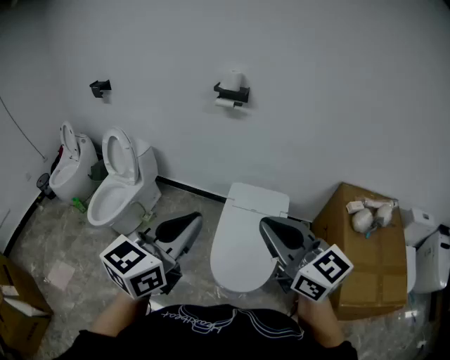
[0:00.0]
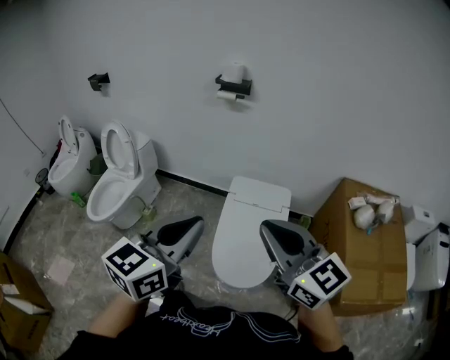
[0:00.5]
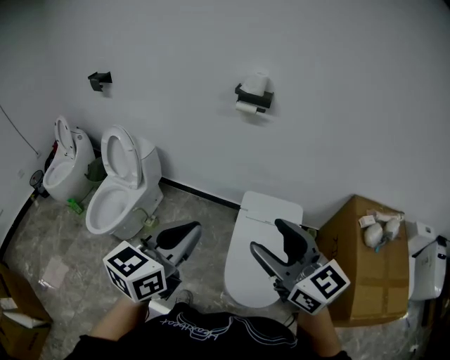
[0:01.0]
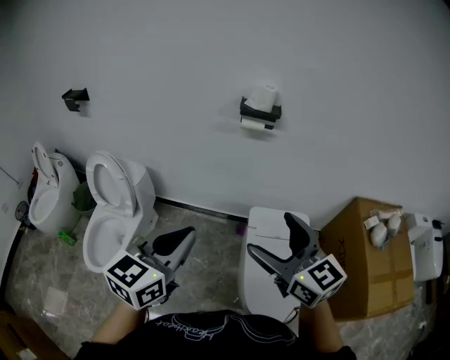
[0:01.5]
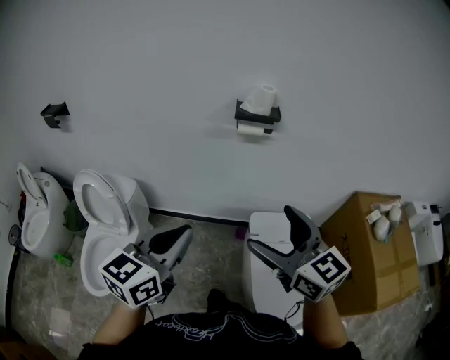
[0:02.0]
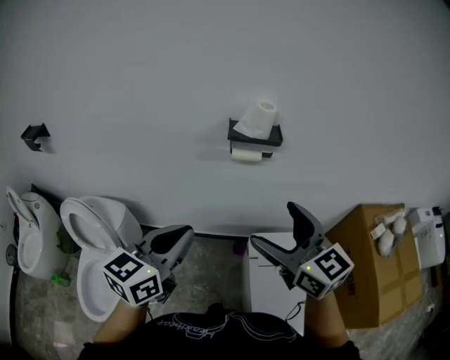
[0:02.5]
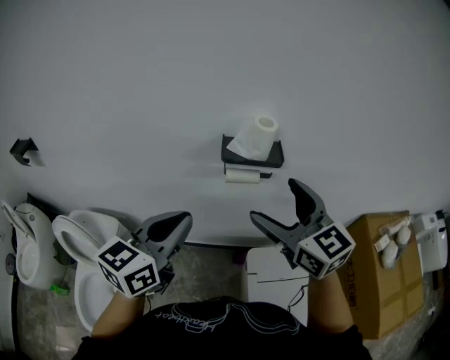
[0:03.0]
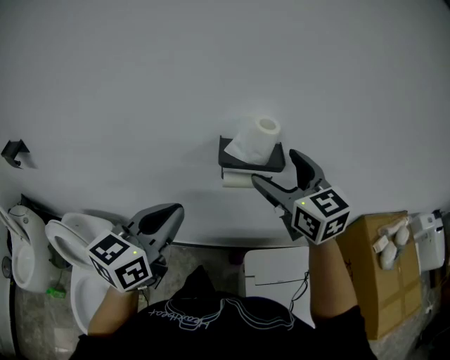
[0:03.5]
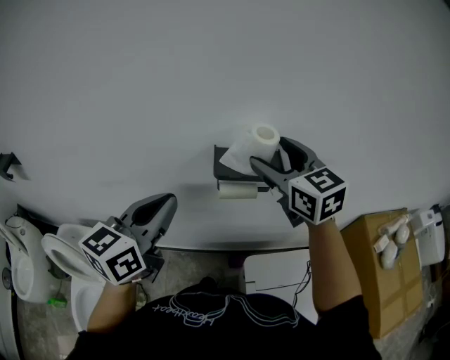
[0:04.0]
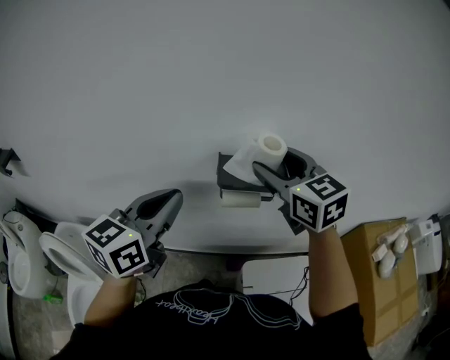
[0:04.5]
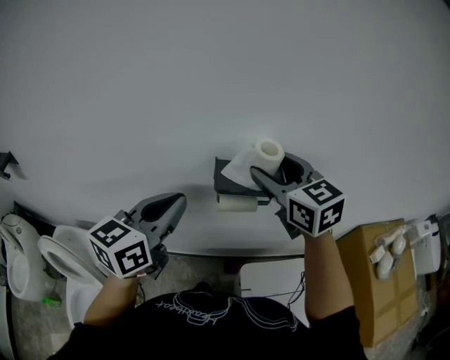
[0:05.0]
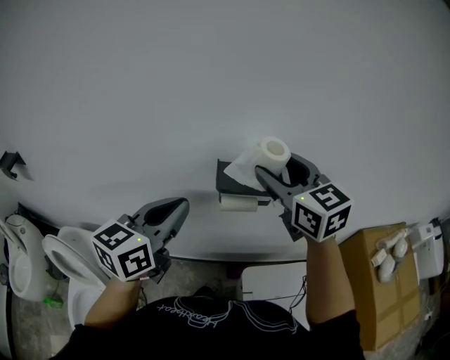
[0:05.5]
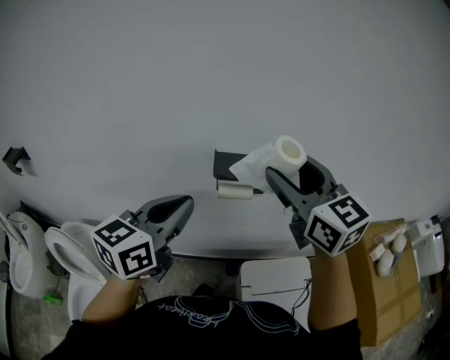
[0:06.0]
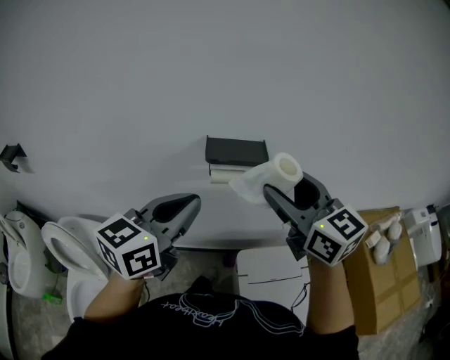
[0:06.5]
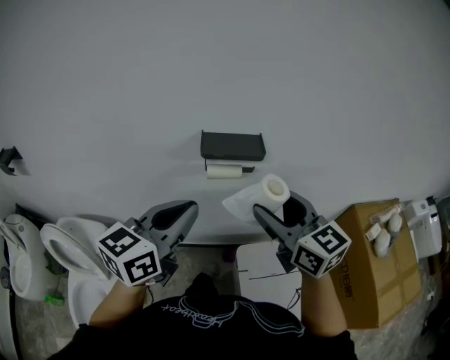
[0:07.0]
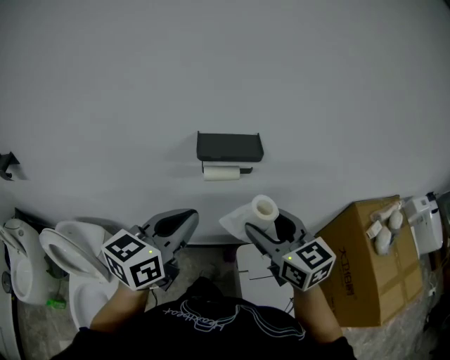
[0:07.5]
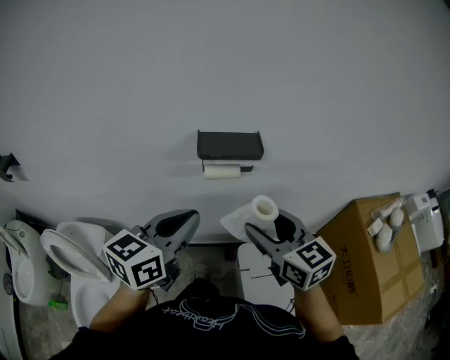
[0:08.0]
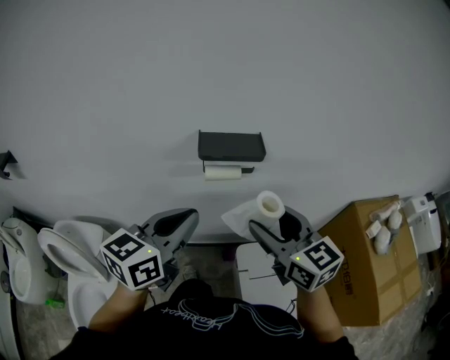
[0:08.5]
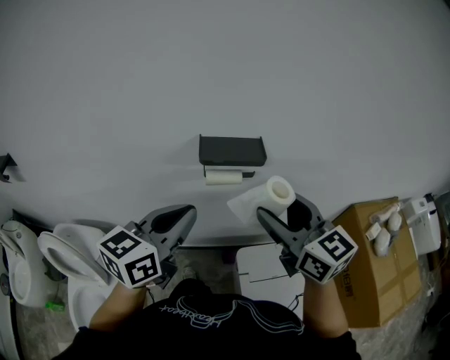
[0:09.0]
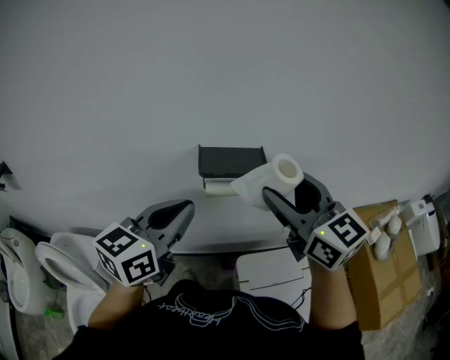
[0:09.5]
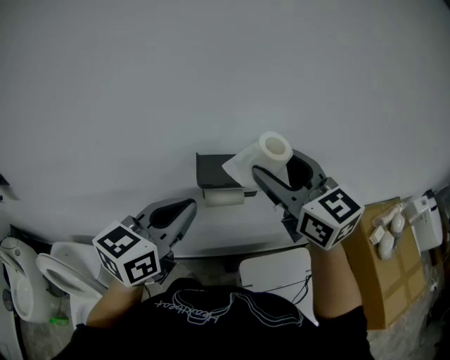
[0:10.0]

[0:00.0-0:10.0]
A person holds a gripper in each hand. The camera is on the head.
0:00.0 to 0:02.0: The grippers both shift forward and to the left by roughly 40 cm. The right gripper opens.
0:02.0 to 0:04.0: The two grippers go about 40 cm forward.
0:04.0 to 0:06.0: The left gripper ends up approximately 5 cm from where it was. Meanwhile the right gripper is displaced backward and upward by some 10 cm.
0:06.0 to 0:08.0: The left gripper is displaced downward by some 5 cm. Meanwhile the right gripper heads downward and backward, covering some 20 cm.
0:08.0 to 0:10.0: The right gripper moves upward and forward, approximately 20 cm. The left gripper shifts about 10 cm forward.

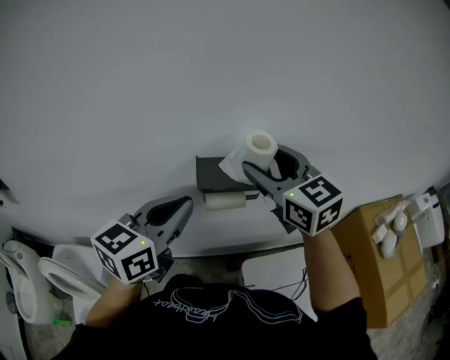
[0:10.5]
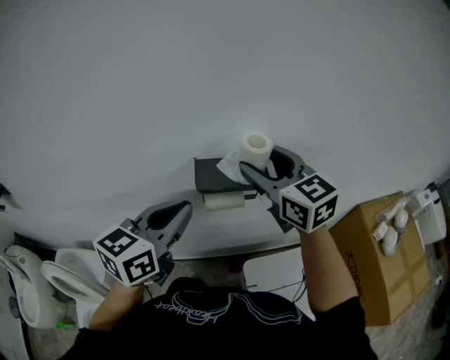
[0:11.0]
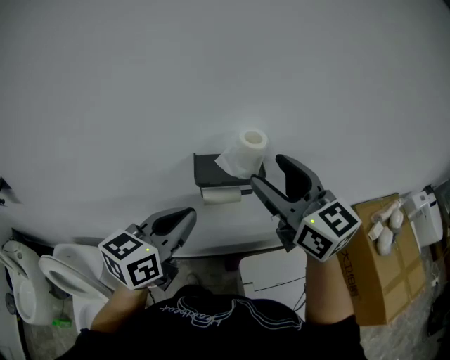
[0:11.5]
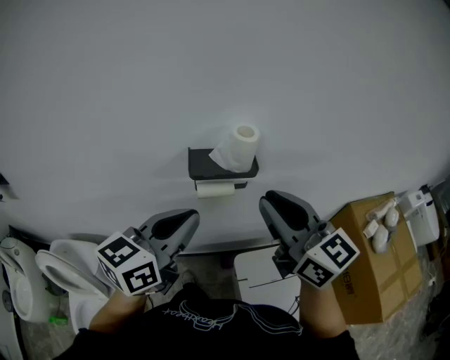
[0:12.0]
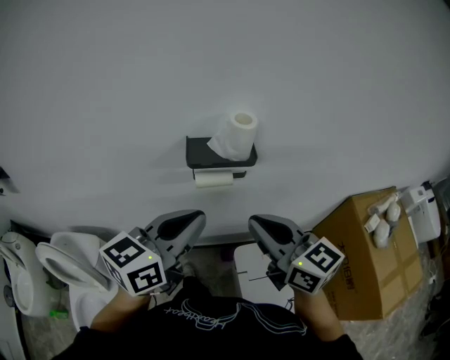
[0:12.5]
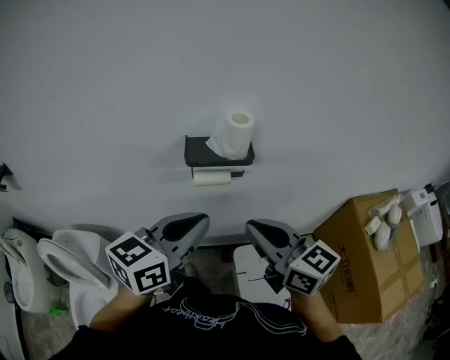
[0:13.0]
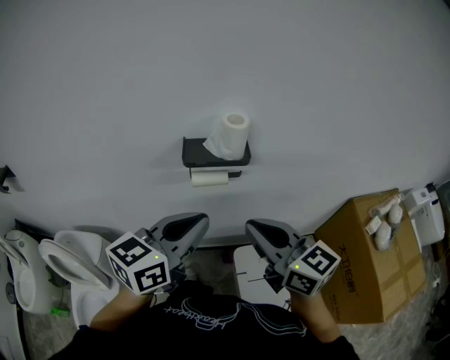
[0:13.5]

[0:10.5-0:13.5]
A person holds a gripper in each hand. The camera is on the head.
0:10.5 to 0:12.0: The left gripper moves backward, approximately 5 cm. Meanwhile the right gripper travels backward by some 15 cm, and closes up.
0:12.0 to 0:13.5: The right gripper moves downward and backward, about 10 cm, while the left gripper changes place by approximately 5 cm.

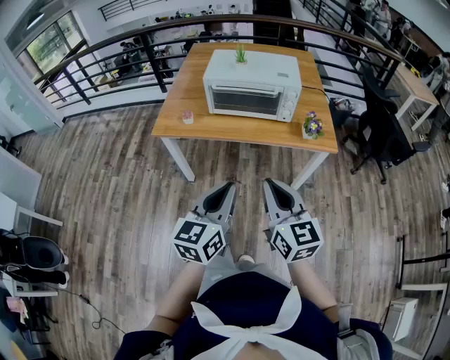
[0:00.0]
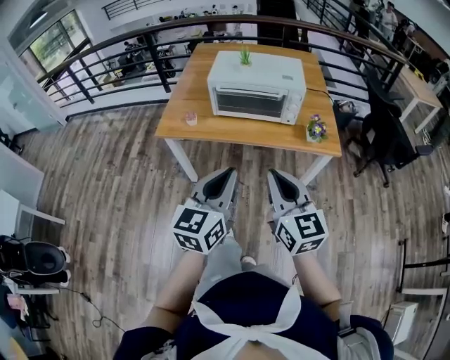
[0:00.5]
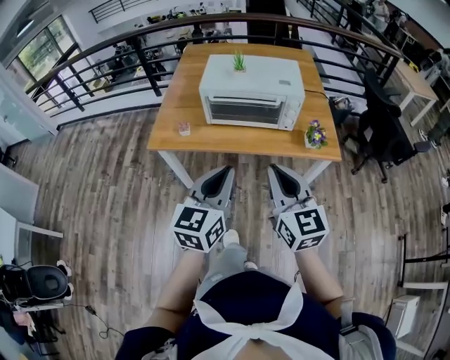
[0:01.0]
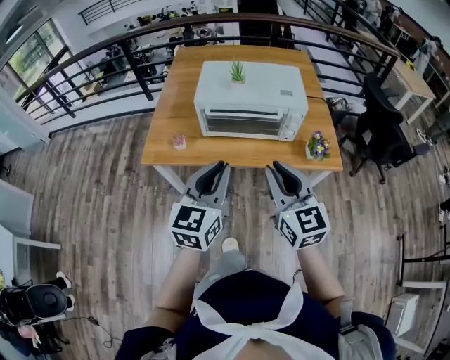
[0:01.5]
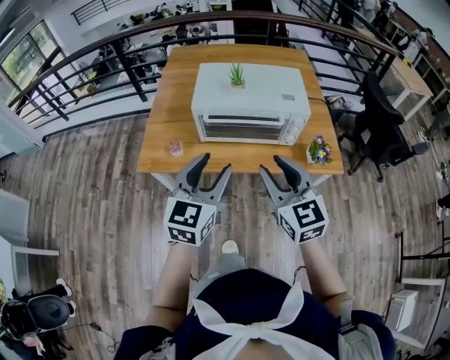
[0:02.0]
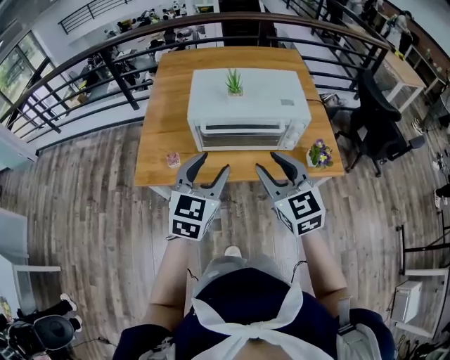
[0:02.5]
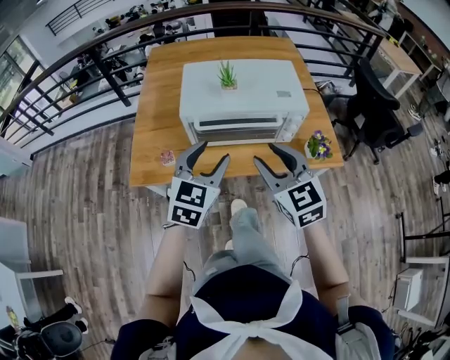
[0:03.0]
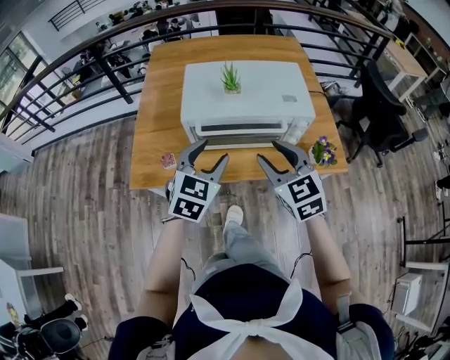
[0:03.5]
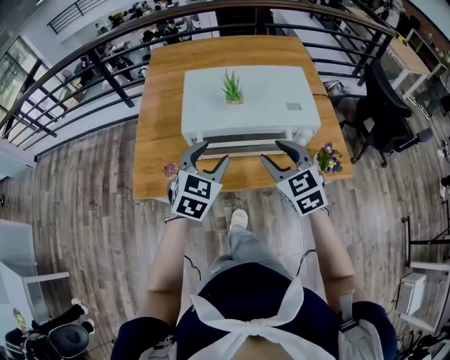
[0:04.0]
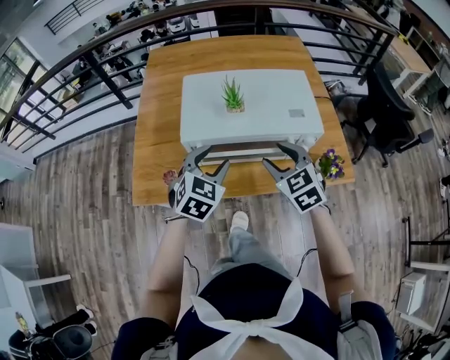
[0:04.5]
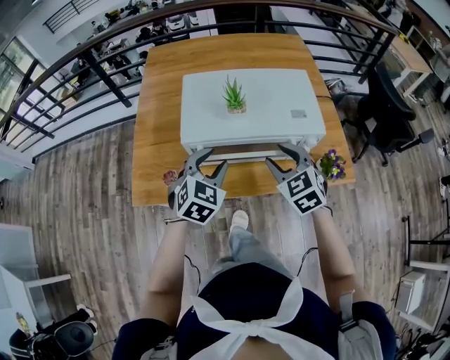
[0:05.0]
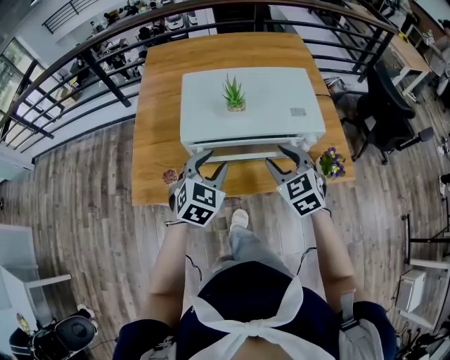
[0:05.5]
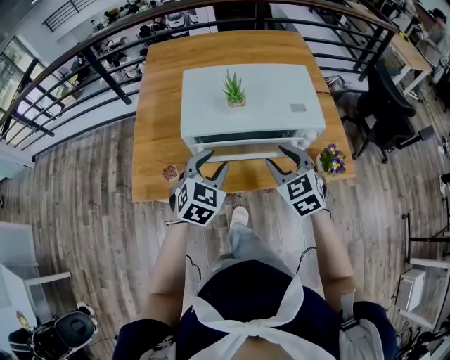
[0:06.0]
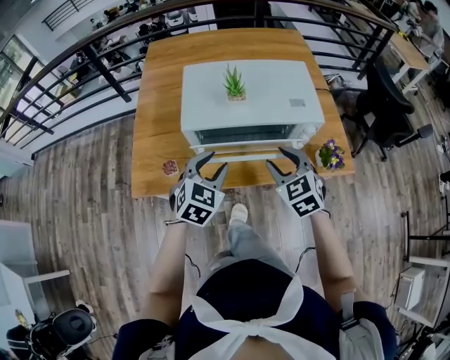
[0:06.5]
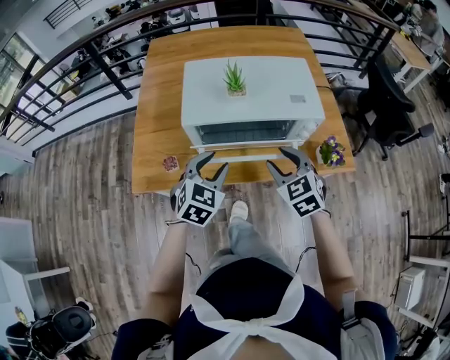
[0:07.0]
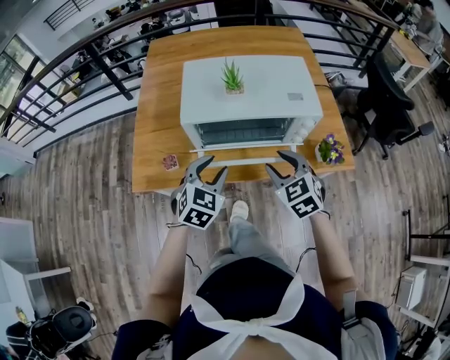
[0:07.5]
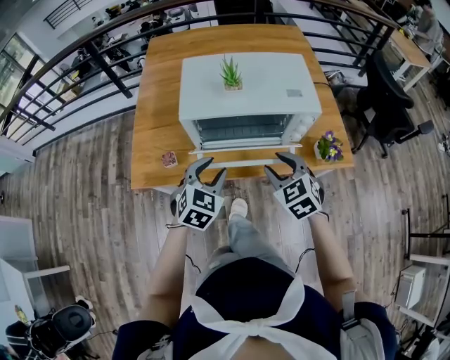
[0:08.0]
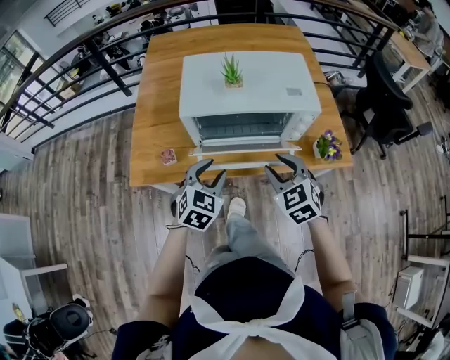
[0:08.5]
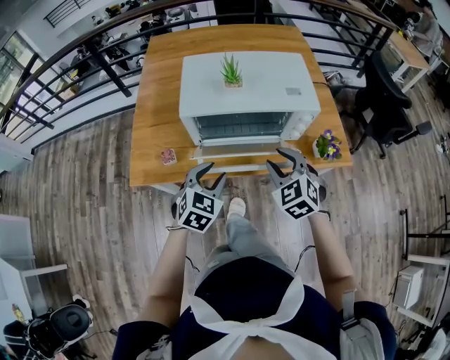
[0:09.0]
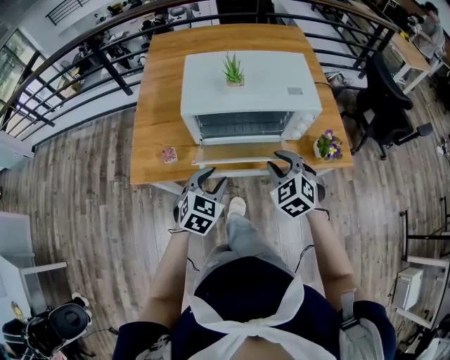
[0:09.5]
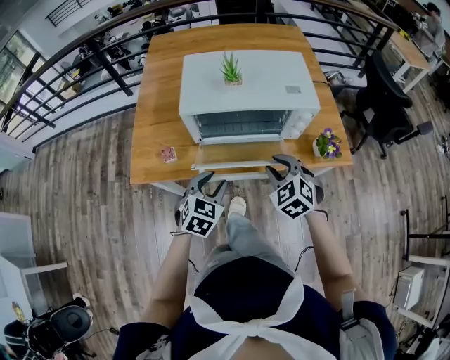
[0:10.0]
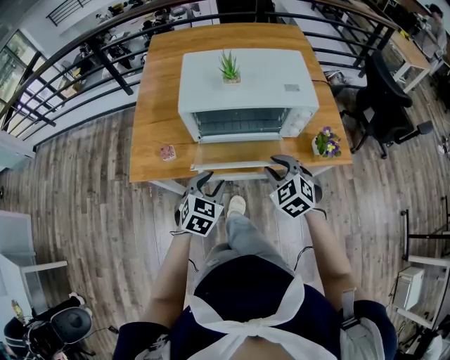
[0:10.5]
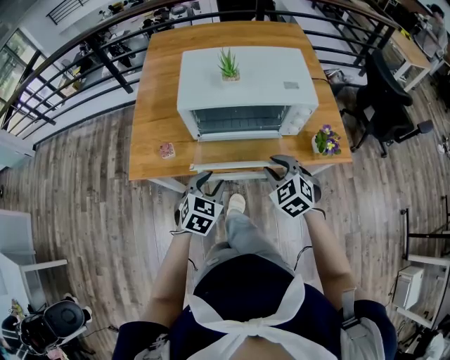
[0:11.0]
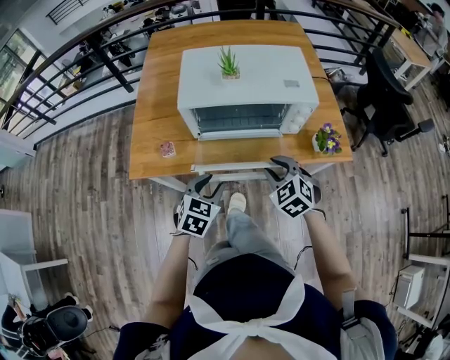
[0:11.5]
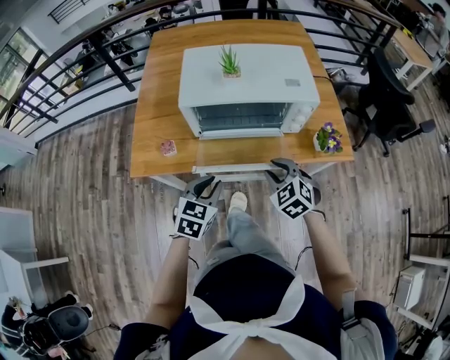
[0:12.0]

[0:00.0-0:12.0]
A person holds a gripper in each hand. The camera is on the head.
0:00.0 to 0:02.0: Both grippers travel together forward, about 25 cm. The right gripper opens; the left gripper opens its fingers.
0:02.0 to 0:04.0: Both grippers travel together forward and downward, approximately 20 cm. The left gripper changes its angle by about 20 degrees.
0:04.0 to 0:06.0: There are only small adjustments of the grippers.
0:06.0 to 0:08.0: Both grippers move backward, about 5 cm.
0:08.0 to 0:10.0: The left gripper ends up about 5 cm from where it was.
0:10.0 to 0:12.0: There are only small adjustments of the grippers.

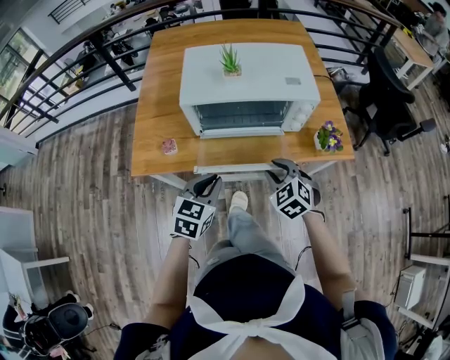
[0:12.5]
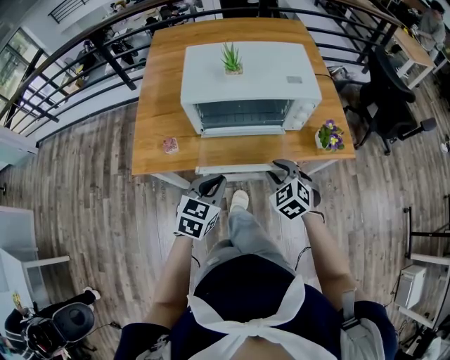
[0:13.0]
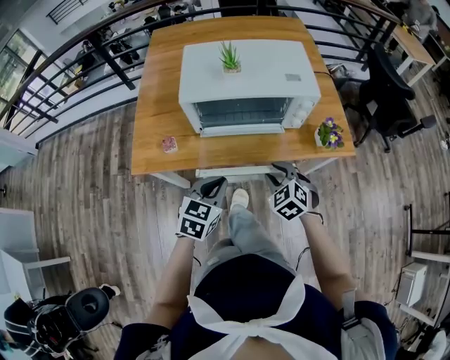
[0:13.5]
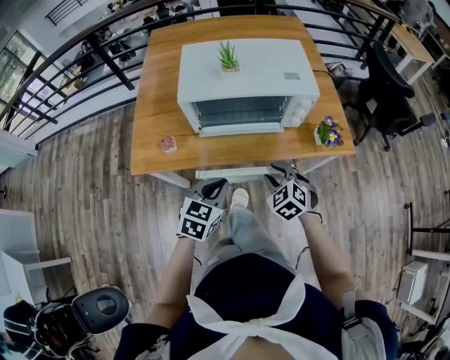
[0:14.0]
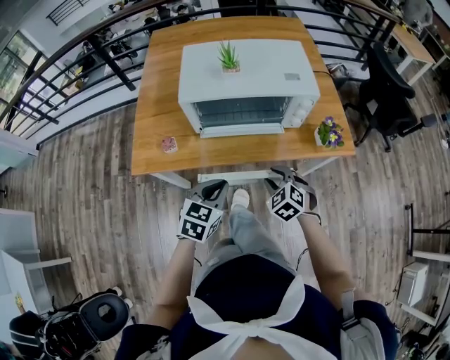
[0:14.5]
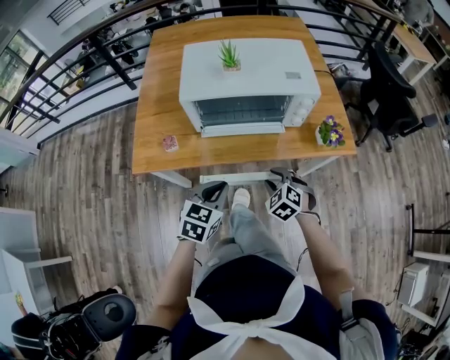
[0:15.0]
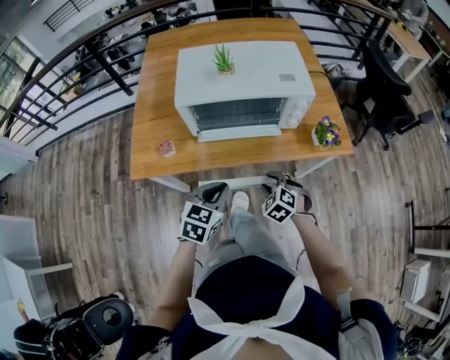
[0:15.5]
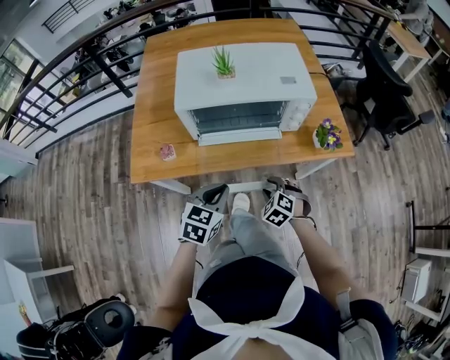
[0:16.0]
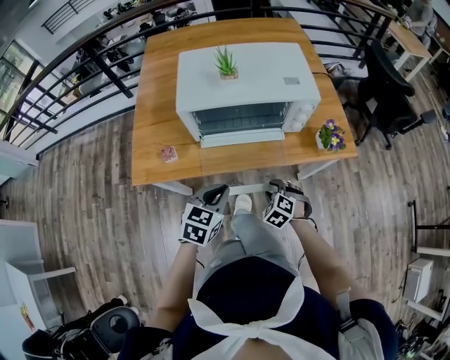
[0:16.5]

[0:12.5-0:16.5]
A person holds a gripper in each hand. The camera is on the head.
0:12.5 to 0:14.5: The right gripper shifts about 5 cm downward.
0:14.5 to 0:16.5: The right gripper goes some 10 cm downward.
